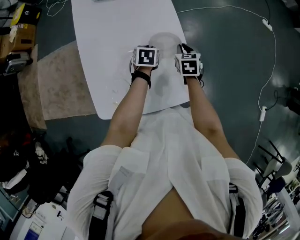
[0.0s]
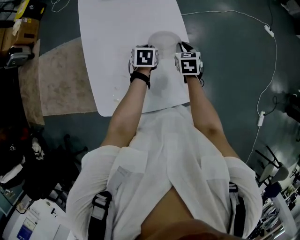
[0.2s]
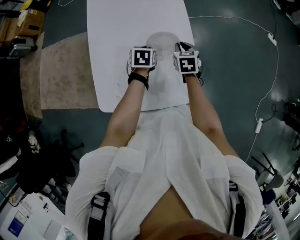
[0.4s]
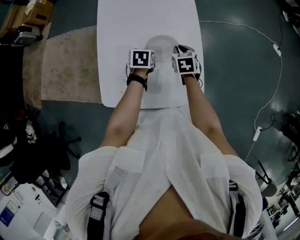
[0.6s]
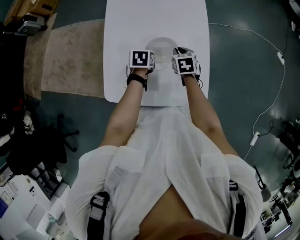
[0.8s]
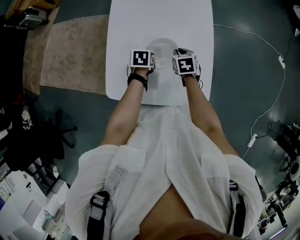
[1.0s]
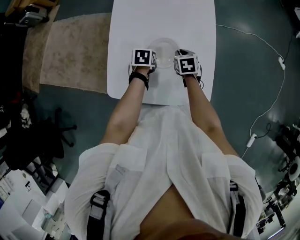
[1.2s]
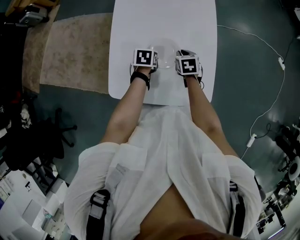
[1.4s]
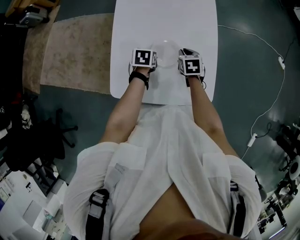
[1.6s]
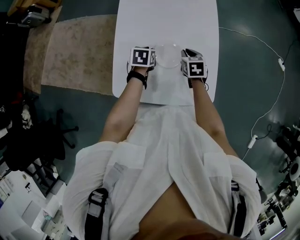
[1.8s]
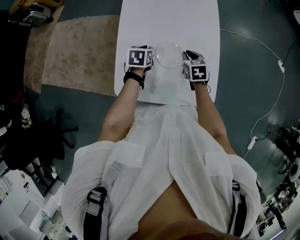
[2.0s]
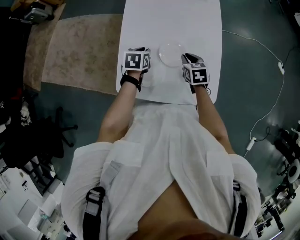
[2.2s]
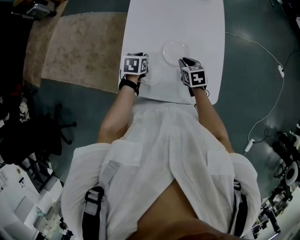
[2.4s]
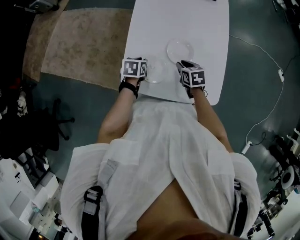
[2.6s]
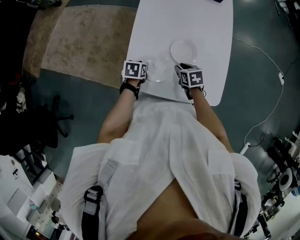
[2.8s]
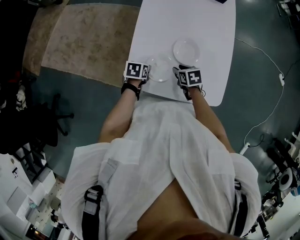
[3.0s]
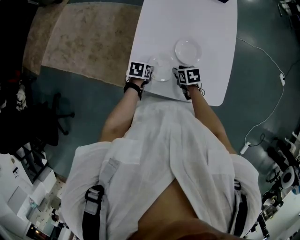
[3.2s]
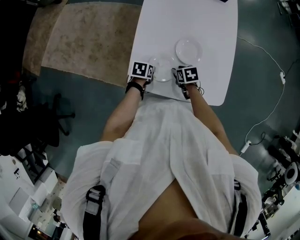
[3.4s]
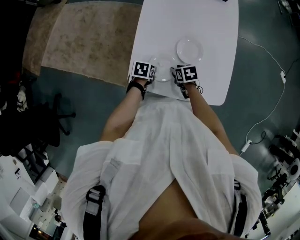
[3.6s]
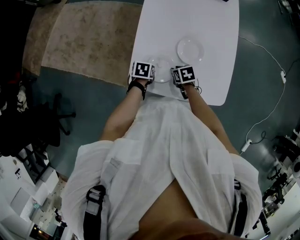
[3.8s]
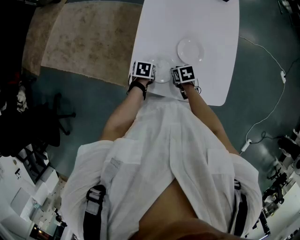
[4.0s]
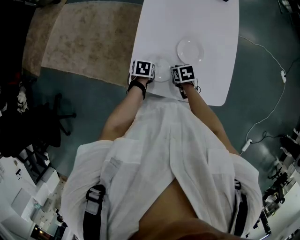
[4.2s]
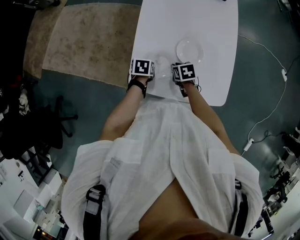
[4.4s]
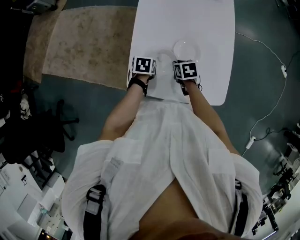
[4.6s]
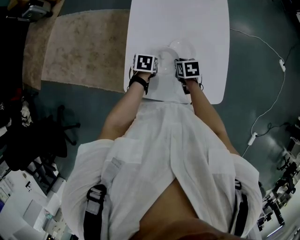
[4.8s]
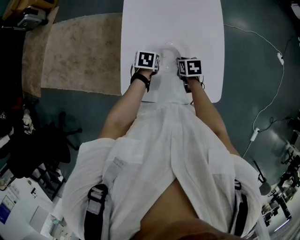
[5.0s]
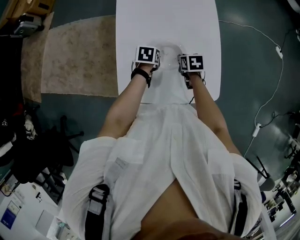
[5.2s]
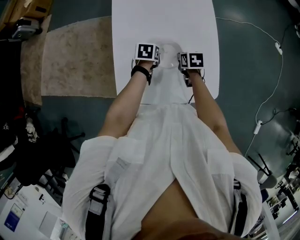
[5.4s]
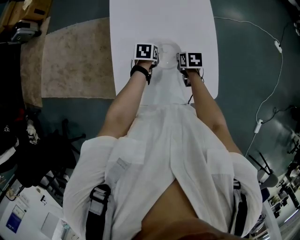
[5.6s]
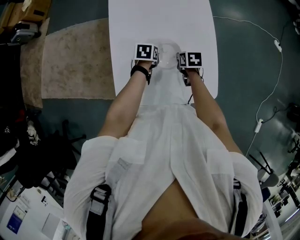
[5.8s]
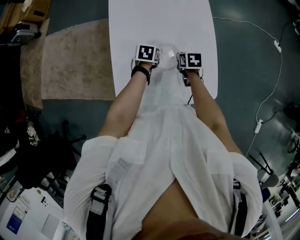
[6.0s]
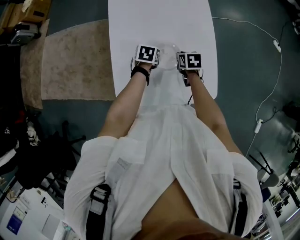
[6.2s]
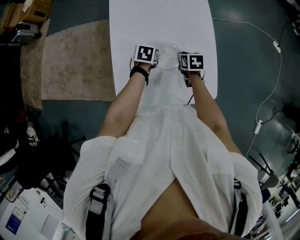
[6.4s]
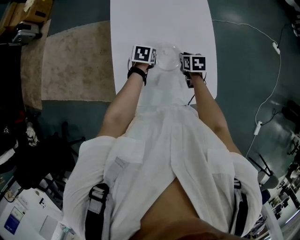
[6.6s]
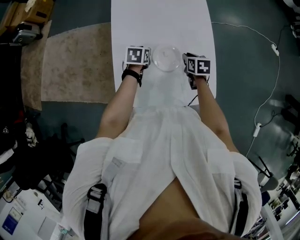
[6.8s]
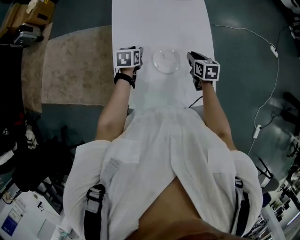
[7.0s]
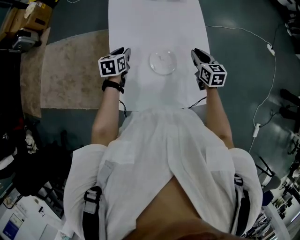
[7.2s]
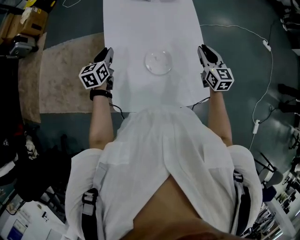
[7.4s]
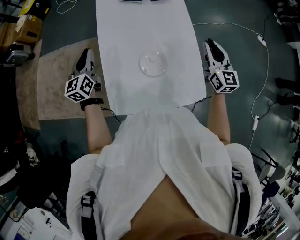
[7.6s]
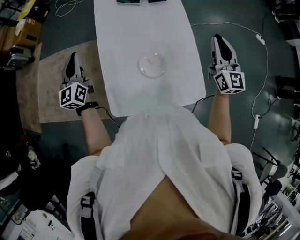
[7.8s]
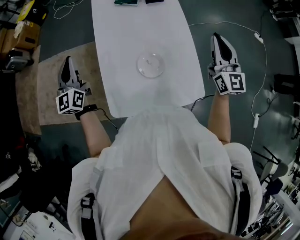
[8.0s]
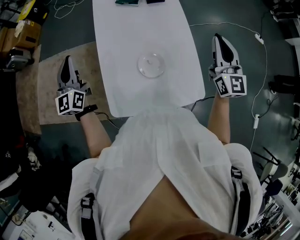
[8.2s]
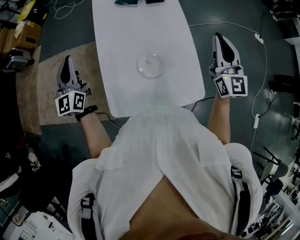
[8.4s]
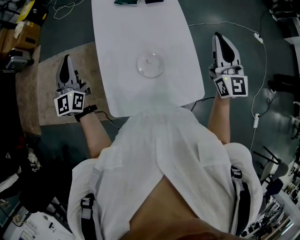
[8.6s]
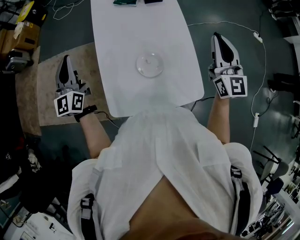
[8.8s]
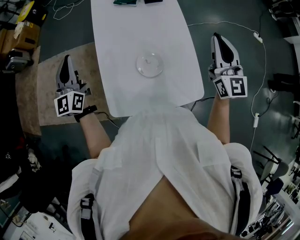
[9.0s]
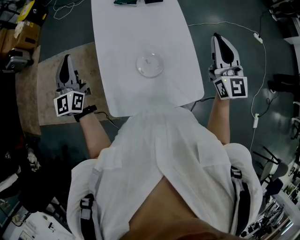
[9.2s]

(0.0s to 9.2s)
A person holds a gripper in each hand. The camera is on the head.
0.0s - 1.6s: Both grippers travel together to the left, about 20 cm.
1.6s - 3.0s: The grippers both shift to the left and backward by about 15 cm. The left gripper opens up; the right gripper swivels some 20 degrees.
3.0s - 4.6s: The grippers make only small movements.
4.6s - 6.2s: Both grippers move to the right and forward, about 15 cm.
6.2s - 7.6s: The right gripper travels upward and to the right by about 30 cm, and angles its fingers upward, by some 50 degrees. The left gripper is displaced upward and to the left by approximately 30 cm, and points its fingers roughly 50 degrees further upward.
7.6s - 9.2s: The grippers both shift upward by roughly 10 cm. The left gripper changes its angle by approximately 20 degrees.

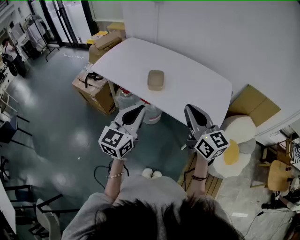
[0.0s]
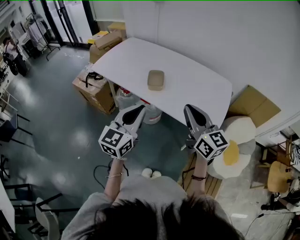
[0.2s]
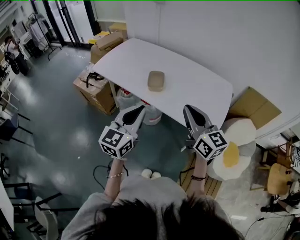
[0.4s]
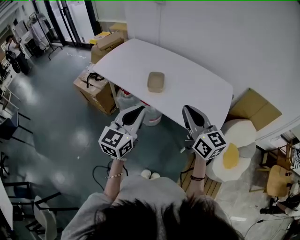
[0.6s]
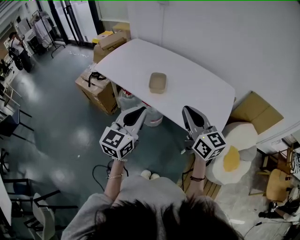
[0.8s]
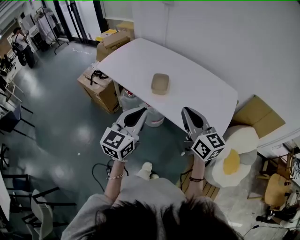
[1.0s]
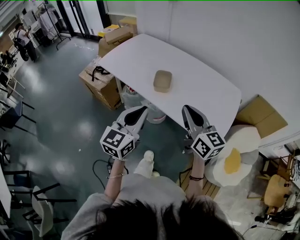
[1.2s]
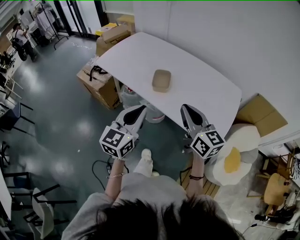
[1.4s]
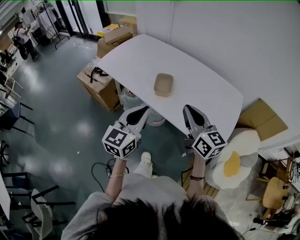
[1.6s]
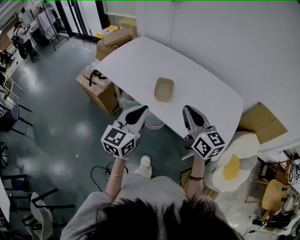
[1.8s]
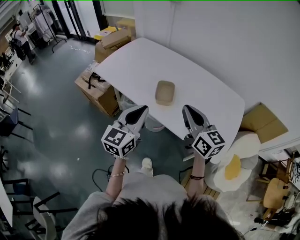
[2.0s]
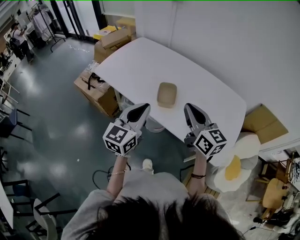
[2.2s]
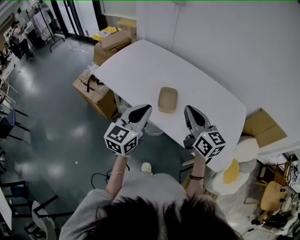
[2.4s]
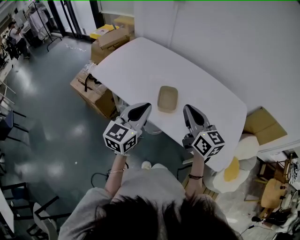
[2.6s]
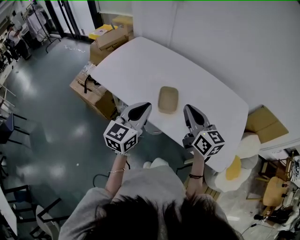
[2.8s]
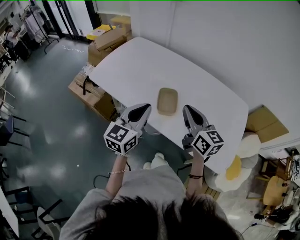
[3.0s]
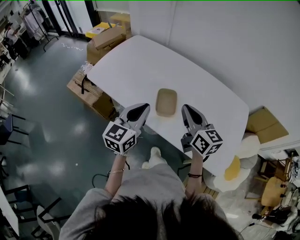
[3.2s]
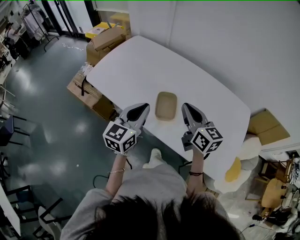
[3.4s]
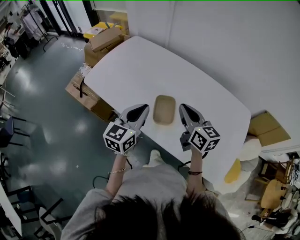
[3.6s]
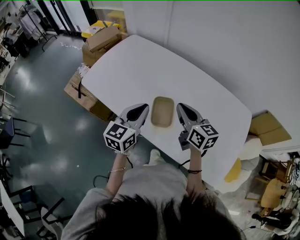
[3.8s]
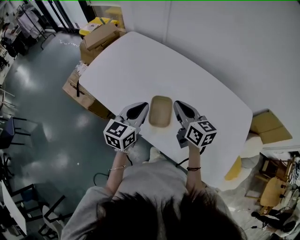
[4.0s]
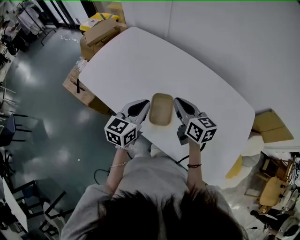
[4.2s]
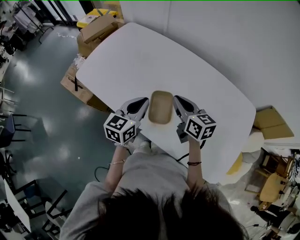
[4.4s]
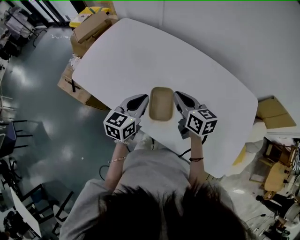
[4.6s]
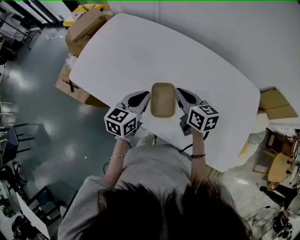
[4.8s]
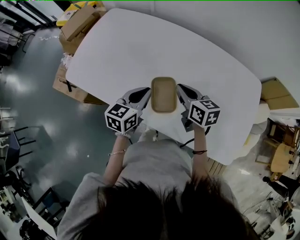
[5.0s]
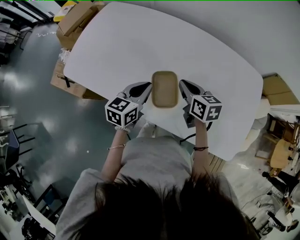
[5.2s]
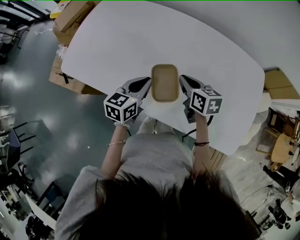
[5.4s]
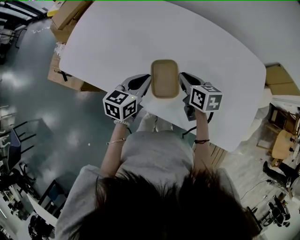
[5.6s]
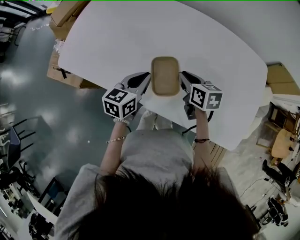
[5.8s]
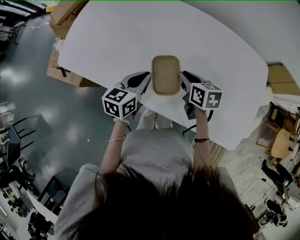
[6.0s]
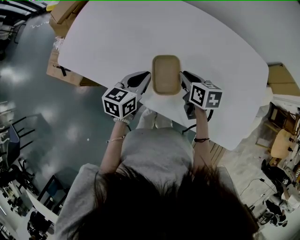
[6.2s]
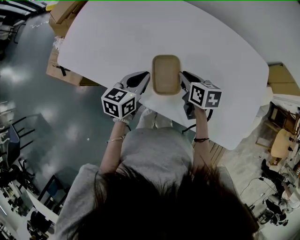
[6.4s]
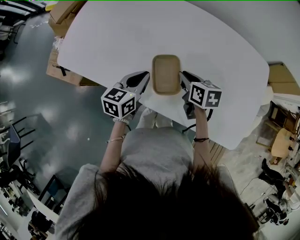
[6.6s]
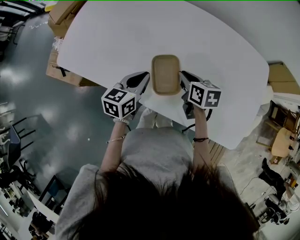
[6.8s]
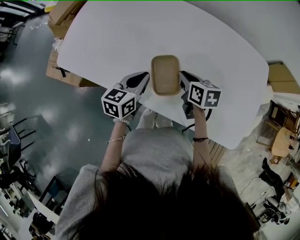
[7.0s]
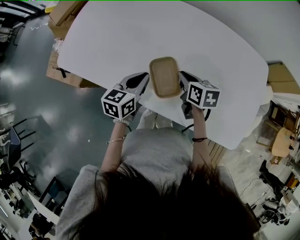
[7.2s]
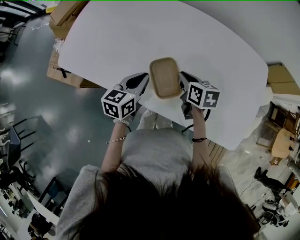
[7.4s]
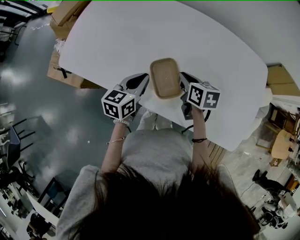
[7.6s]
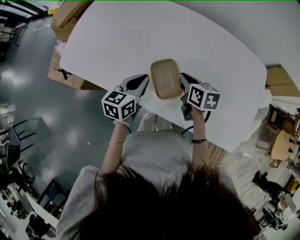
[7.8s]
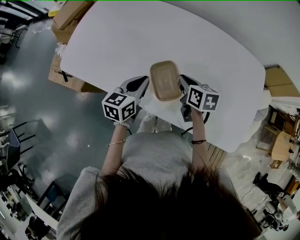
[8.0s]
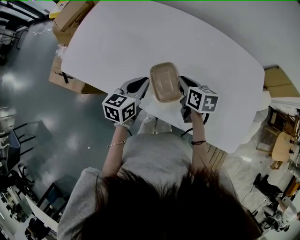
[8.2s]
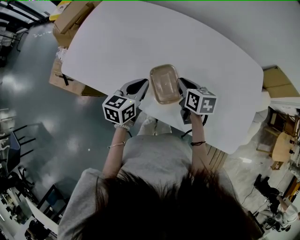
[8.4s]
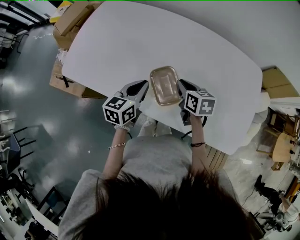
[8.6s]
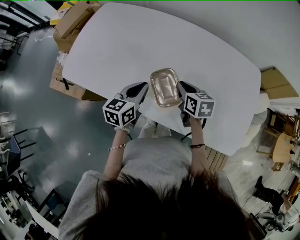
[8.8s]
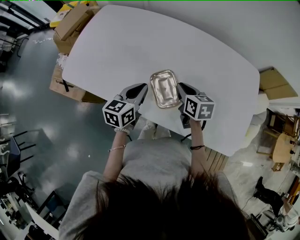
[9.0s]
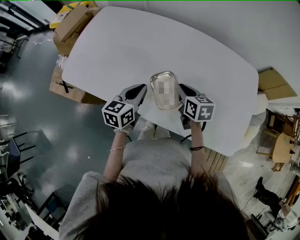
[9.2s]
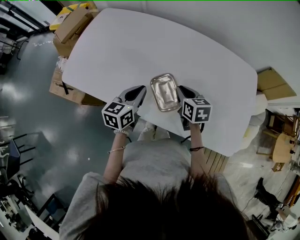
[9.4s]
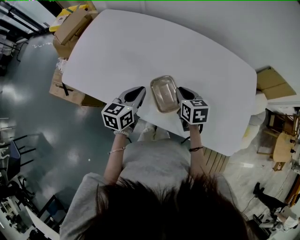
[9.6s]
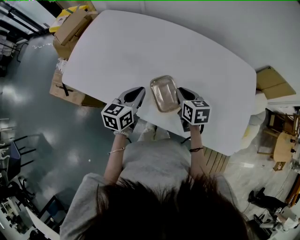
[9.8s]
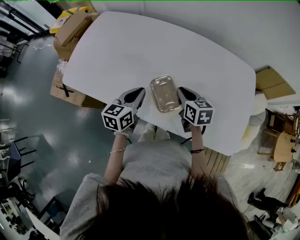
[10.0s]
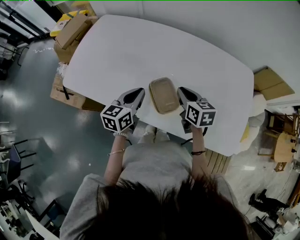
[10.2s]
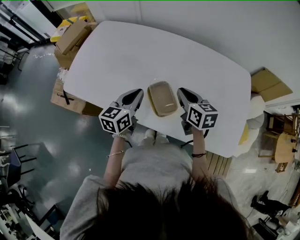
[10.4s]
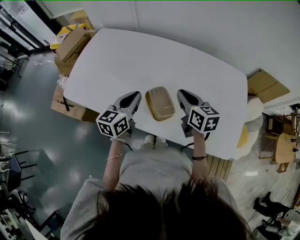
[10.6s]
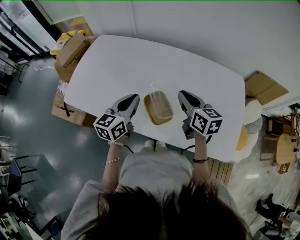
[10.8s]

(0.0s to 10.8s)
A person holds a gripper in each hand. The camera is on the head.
0.0s - 1.6s: The two grippers go about 5 cm forward.
1.6s - 3.0s: Both grippers travel together forward, some 15 cm.
3.0s - 4.6s: The grippers both shift forward and downward by some 15 cm.
4.6s - 6.2s: Both grippers travel together downward, some 10 cm. The right gripper changes its angle by some 30 degrees.
6.2s - 7.8s: The two grippers keep their place.
7.8s - 9.2s: The grippers make only small movements.
9.2s - 10.8s: Both grippers travel together upward, some 10 cm.

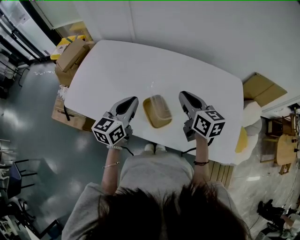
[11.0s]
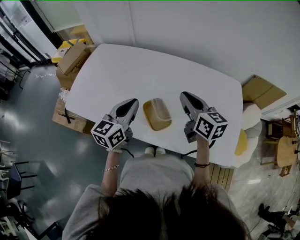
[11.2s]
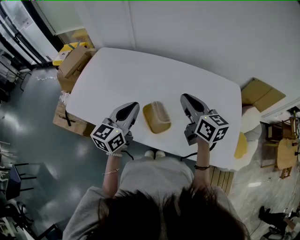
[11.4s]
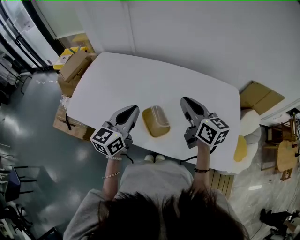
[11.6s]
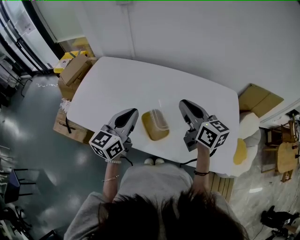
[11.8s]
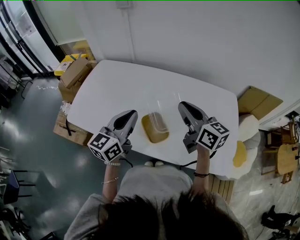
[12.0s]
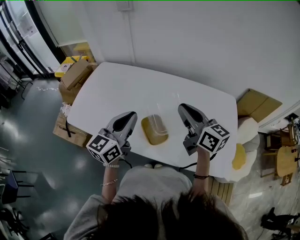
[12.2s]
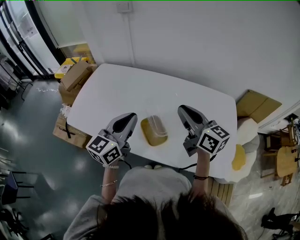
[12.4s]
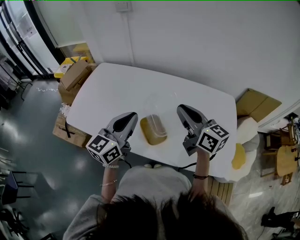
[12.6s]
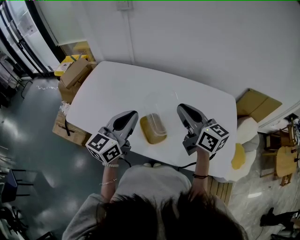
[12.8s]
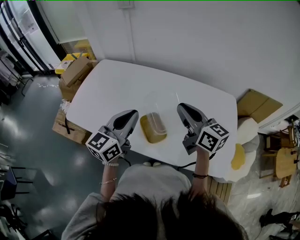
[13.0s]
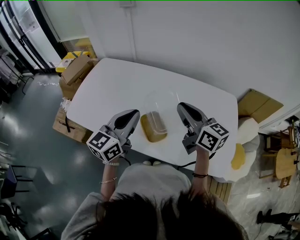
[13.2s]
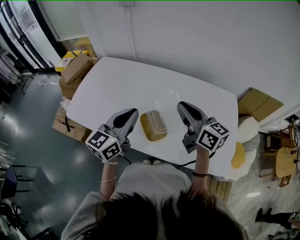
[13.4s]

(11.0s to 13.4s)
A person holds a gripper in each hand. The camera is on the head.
11.0s - 12.2s: The grippers both shift upward by approximately 10 cm.
12.2s - 13.4s: There are only small adjustments of the grippers.

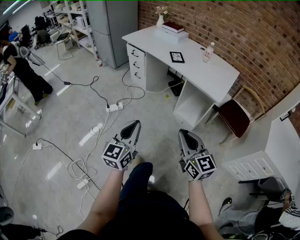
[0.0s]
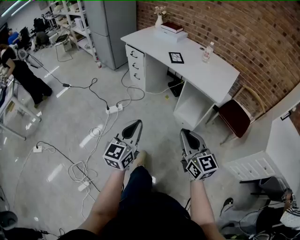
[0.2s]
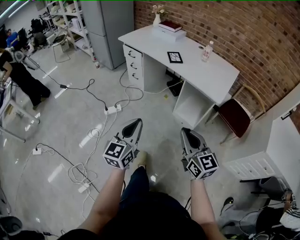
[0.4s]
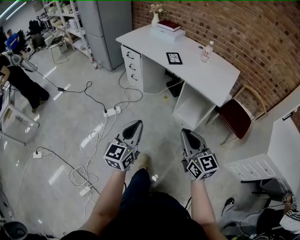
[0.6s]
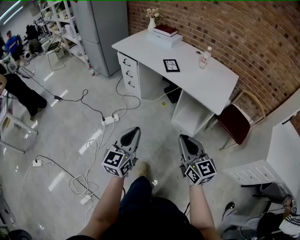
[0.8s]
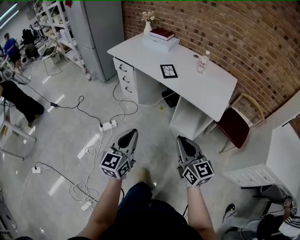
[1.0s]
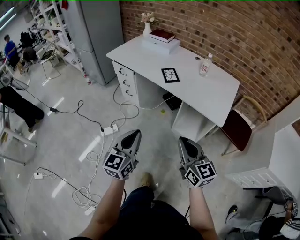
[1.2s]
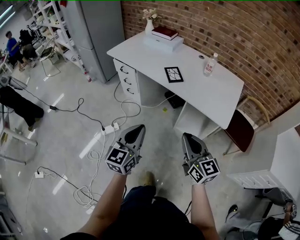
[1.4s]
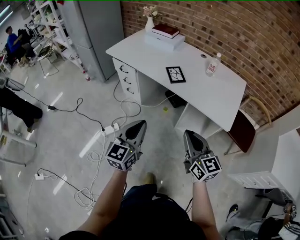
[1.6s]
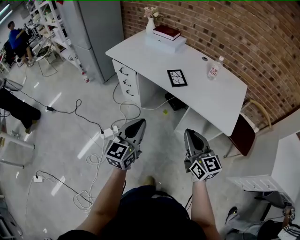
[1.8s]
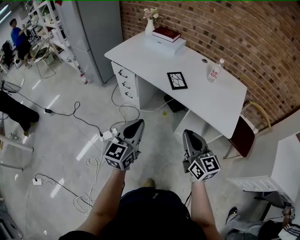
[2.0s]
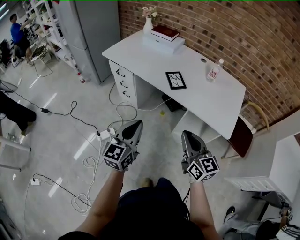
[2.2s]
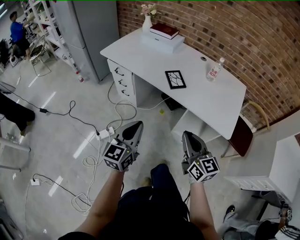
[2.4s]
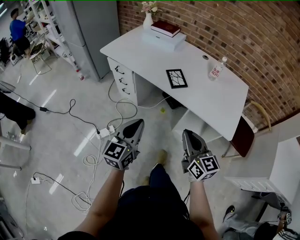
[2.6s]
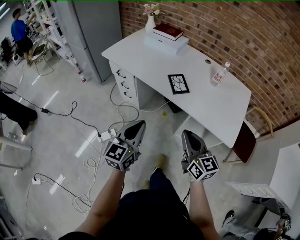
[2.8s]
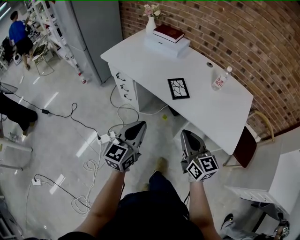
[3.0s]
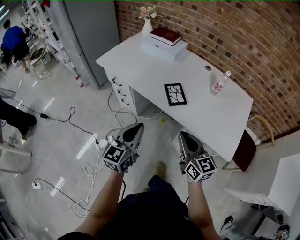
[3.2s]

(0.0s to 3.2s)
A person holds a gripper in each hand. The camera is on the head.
0.0s - 1.6s: The grippers both shift forward by about 30 cm.
1.6s - 3.2s: Both grippers move forward, about 20 cm.
